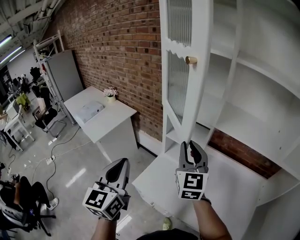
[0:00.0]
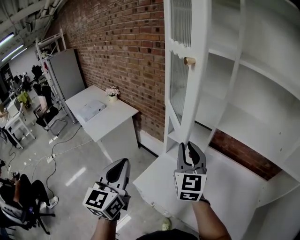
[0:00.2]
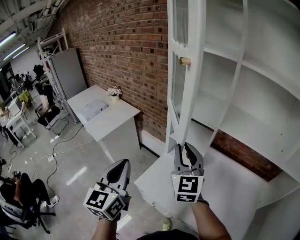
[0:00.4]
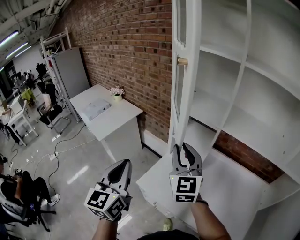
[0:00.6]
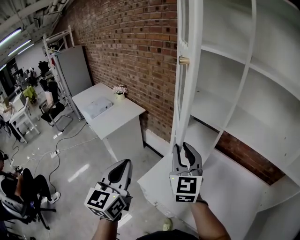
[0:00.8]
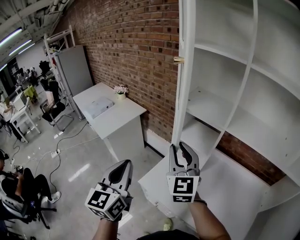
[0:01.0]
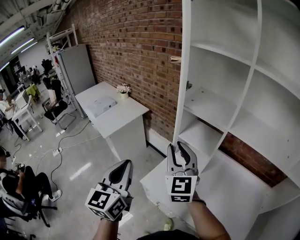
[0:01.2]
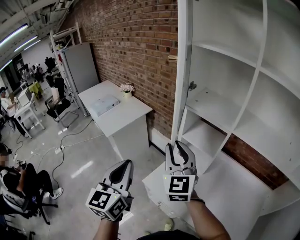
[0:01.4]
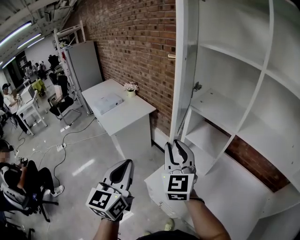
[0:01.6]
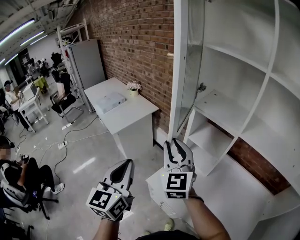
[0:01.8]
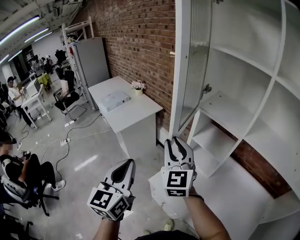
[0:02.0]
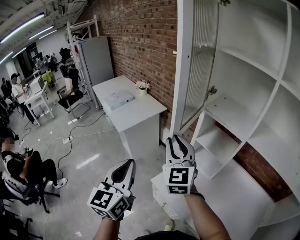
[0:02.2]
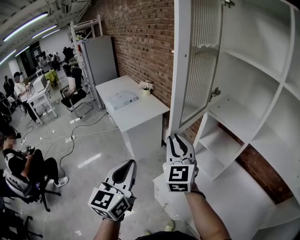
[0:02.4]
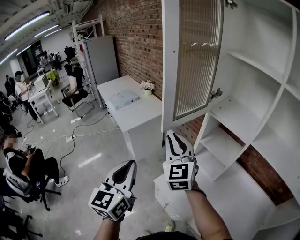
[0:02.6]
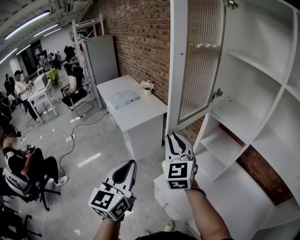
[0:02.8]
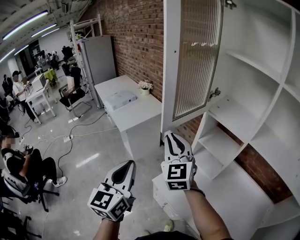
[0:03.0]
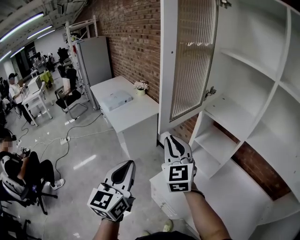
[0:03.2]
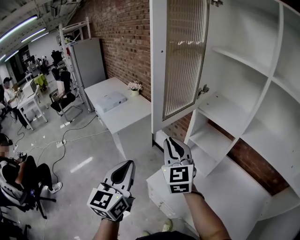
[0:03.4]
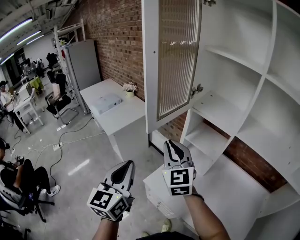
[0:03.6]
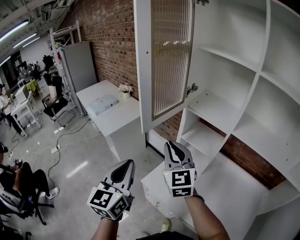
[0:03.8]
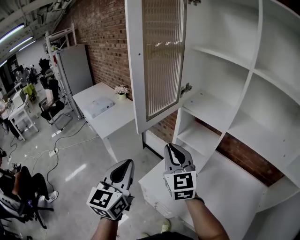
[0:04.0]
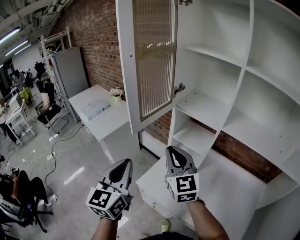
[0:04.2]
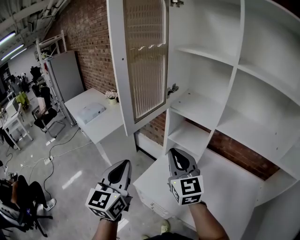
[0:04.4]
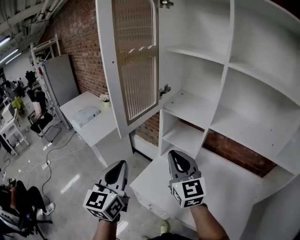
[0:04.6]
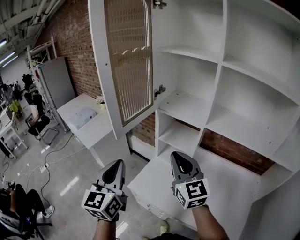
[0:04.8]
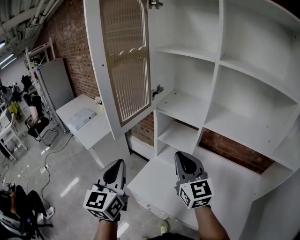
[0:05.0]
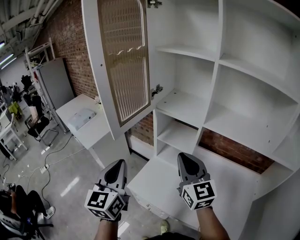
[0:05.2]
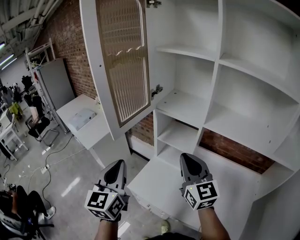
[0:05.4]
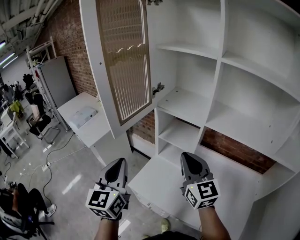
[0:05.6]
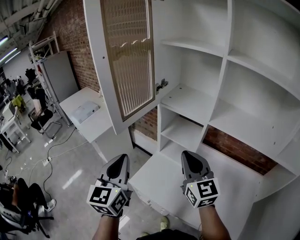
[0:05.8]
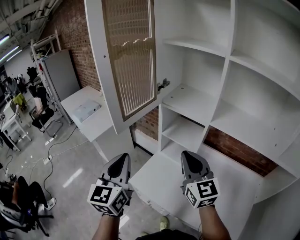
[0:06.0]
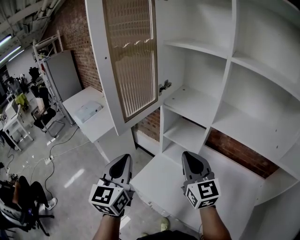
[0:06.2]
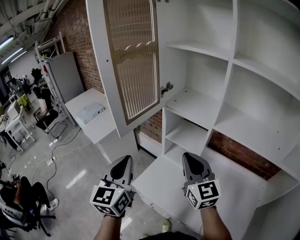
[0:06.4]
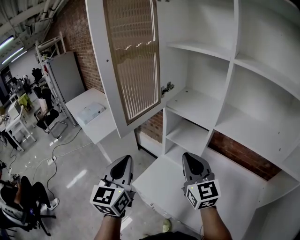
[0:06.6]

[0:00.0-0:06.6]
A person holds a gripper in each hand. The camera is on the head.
0:00.0 to 0:01.6: The left gripper shifts roughly 5 cm to the left, while the right gripper goes some 15 cm to the left.
0:01.6 to 0:03.2: The right gripper goes about 5 cm to the left.
0:03.2 to 0:05.0: The right gripper travels to the right and backward by approximately 20 cm, while the left gripper shifts approximately 10 cm to the right.
0:05.0 to 0:06.6: The grippers move only a little.

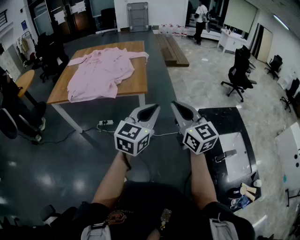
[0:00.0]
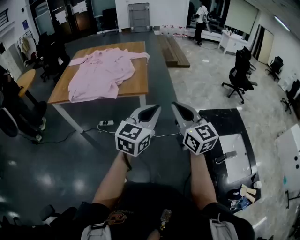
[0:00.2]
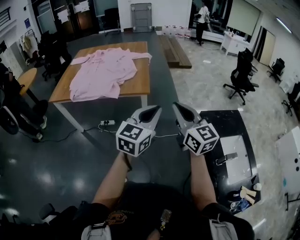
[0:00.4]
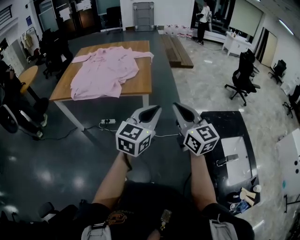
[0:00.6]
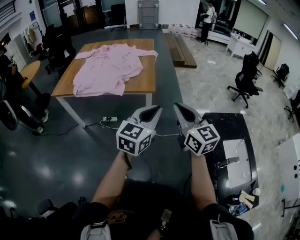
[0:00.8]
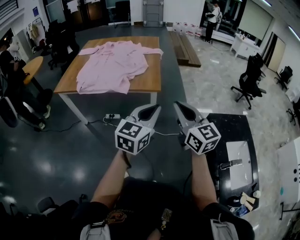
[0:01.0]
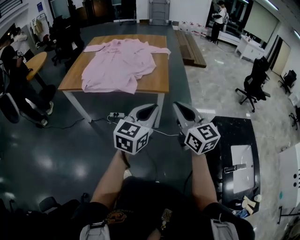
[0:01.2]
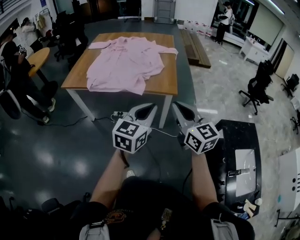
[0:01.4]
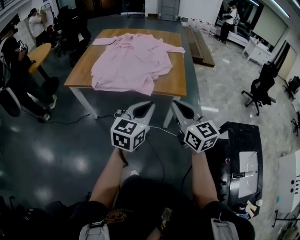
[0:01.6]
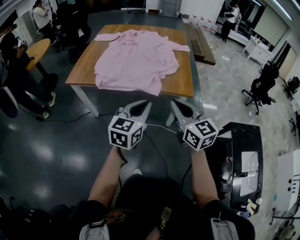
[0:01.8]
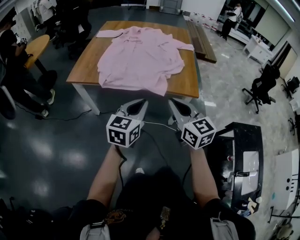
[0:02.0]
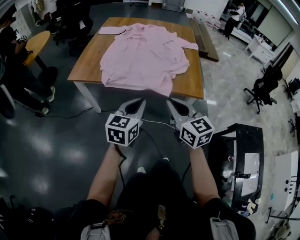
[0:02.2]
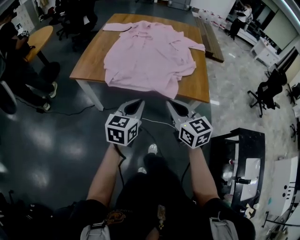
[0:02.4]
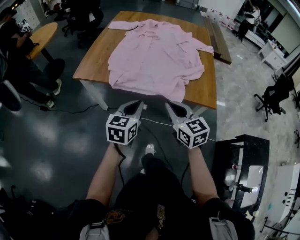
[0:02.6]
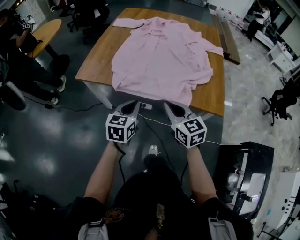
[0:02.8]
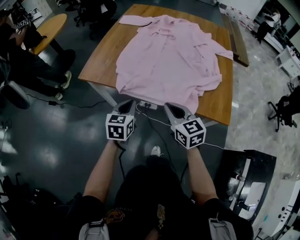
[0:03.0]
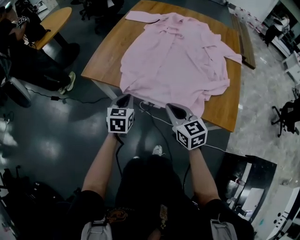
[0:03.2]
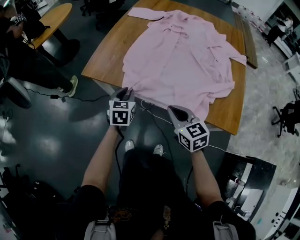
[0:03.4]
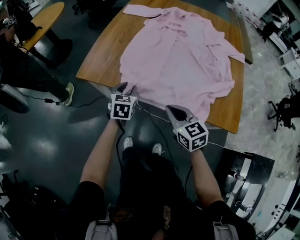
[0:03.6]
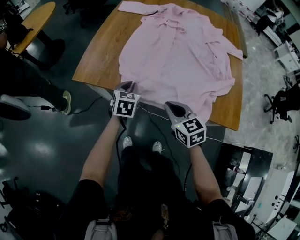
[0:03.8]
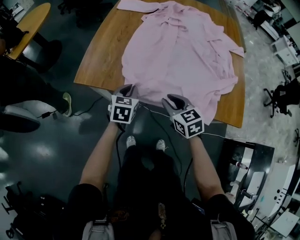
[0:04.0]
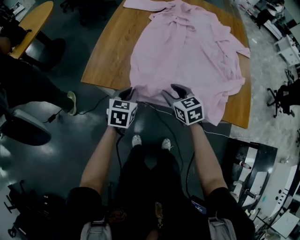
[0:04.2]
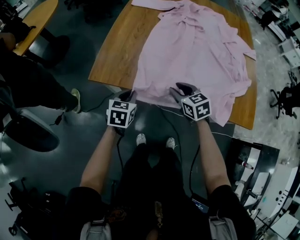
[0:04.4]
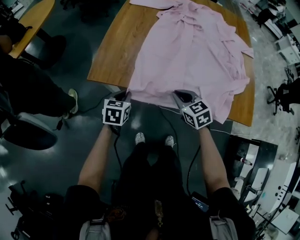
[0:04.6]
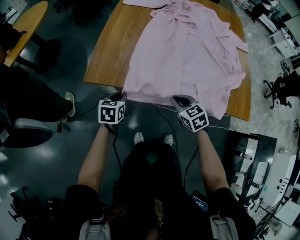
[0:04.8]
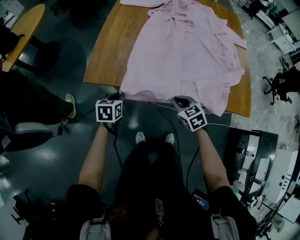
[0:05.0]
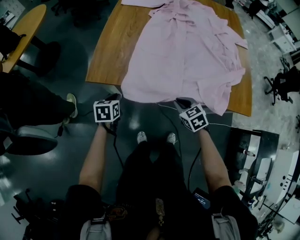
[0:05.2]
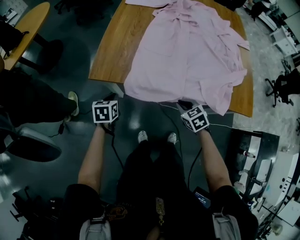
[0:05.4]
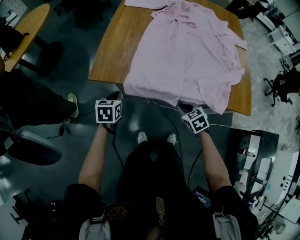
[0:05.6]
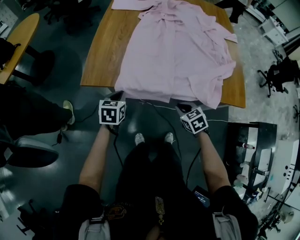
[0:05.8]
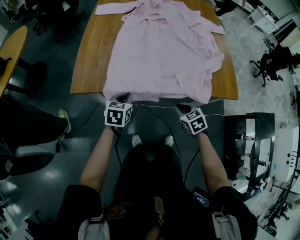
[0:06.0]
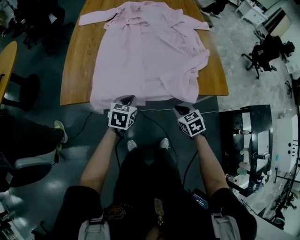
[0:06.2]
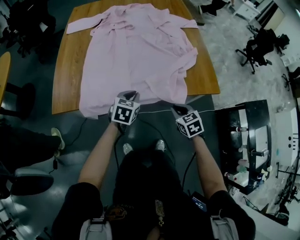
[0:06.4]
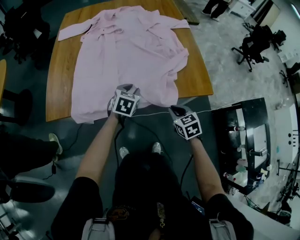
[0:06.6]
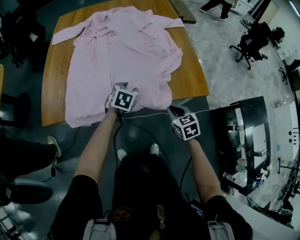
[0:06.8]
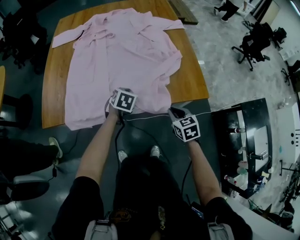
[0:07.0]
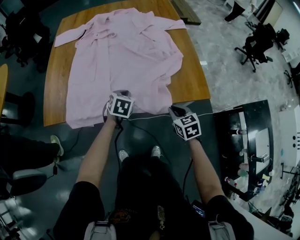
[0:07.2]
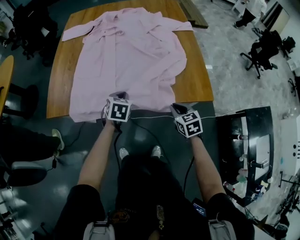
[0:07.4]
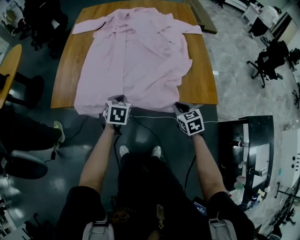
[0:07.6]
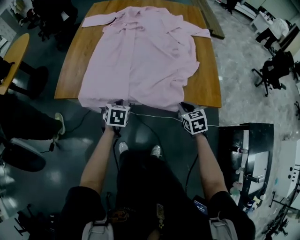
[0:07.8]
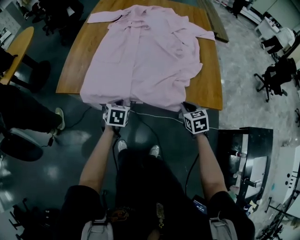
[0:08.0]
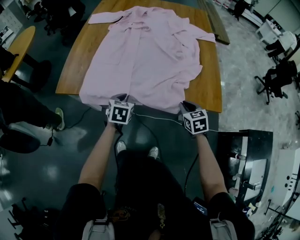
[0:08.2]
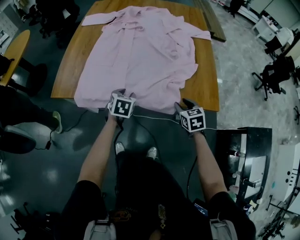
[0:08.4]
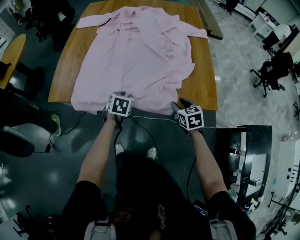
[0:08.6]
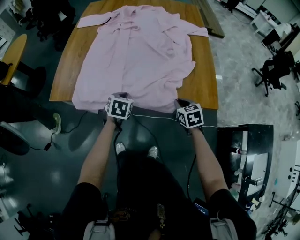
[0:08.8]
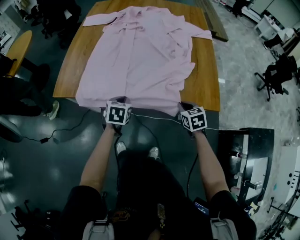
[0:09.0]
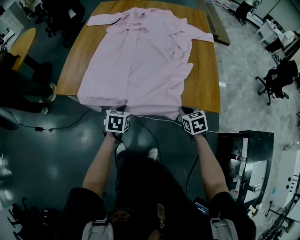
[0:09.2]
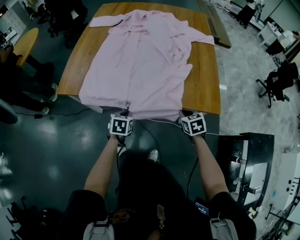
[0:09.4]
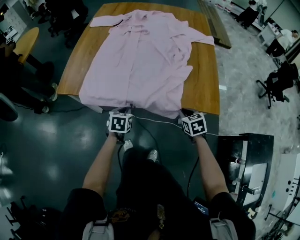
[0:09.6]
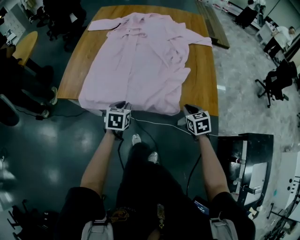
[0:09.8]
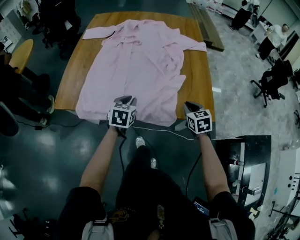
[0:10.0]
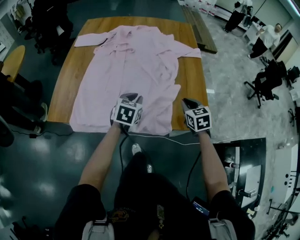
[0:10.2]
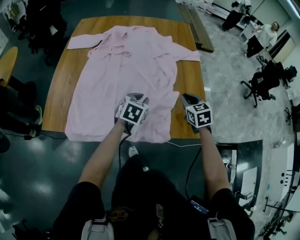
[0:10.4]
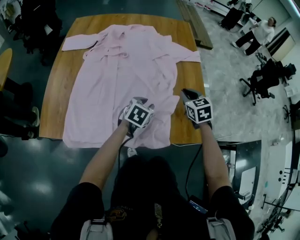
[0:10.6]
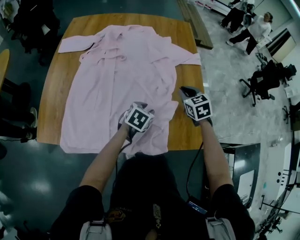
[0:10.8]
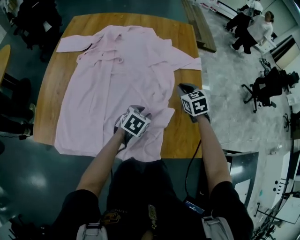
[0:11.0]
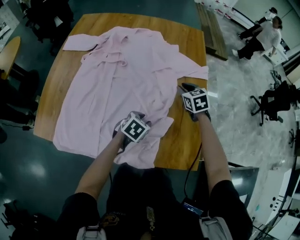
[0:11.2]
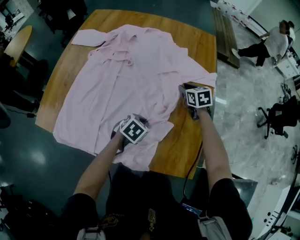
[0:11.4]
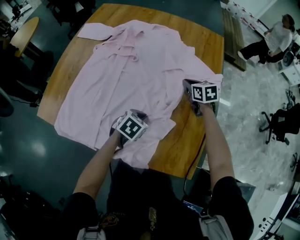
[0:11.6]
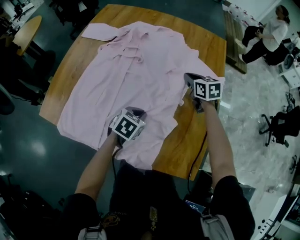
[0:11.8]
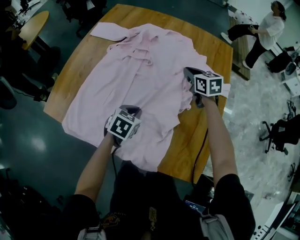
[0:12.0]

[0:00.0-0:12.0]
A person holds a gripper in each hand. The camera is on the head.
0:00.0 to 0:01.6: Both grippers move to the left and forward, roughly 25 cm.
0:01.6 to 0:03.0: The right gripper heads forward, to the left and downward, covering approximately 35 cm, and rotates about 20 degrees. Meanwhile the left gripper moves to the left, forward and downward, some 40 cm, and rotates approximately 30 degrees.
0:03.0 to 0:04.4: The left gripper moves forward, to the left and downward, approximately 25 cm, and opens, then closes once more, while the right gripper shifts about 25 cm forward, downward and to the left, and opens up.
0:04.4 to 0:06.0: The left gripper shifts approximately 5 cm to the right; the right gripper is displaced backward and to the right by roughly 20 cm, and closes its fingers.
0:06.0 to 0:07.6: The grippers both shift to the right by about 15 cm. The left gripper opens, then closes again.
0:07.6 to 0:09.0: The right gripper opens, then closes once more. Meanwhile the left gripper opens, then closes again.
0:09.0 to 0:10.4: The left gripper heads forward, to the right and upward, covering approximately 25 cm, and changes its angle by approximately 20 degrees. Meanwhile the right gripper goes approximately 20 cm forward and upward.
0:10.4 to 0:12.0: The right gripper goes downward and returns, roughly 10 cm each way, and turns by some 30 degrees. The left gripper goes downward and returns, roughly 10 cm each way.

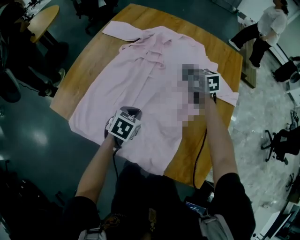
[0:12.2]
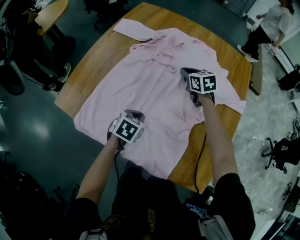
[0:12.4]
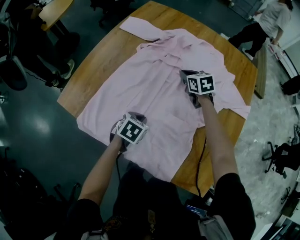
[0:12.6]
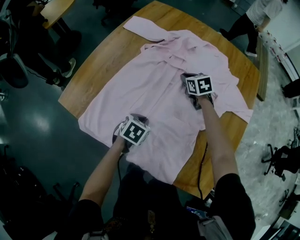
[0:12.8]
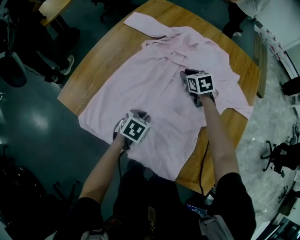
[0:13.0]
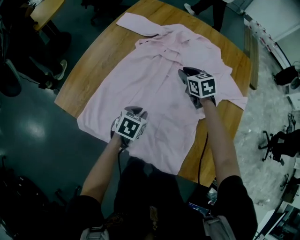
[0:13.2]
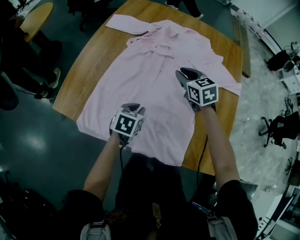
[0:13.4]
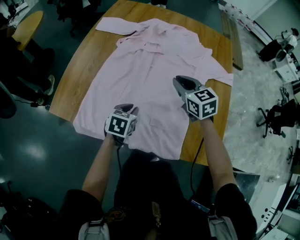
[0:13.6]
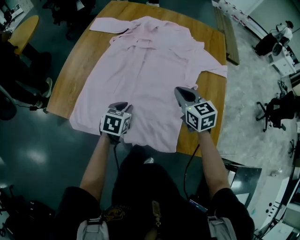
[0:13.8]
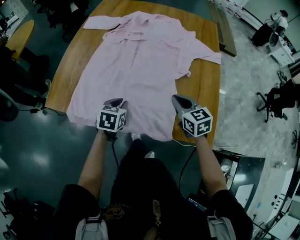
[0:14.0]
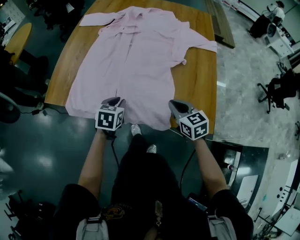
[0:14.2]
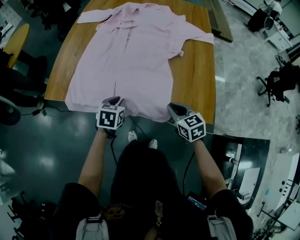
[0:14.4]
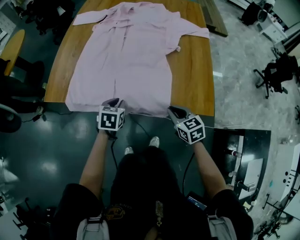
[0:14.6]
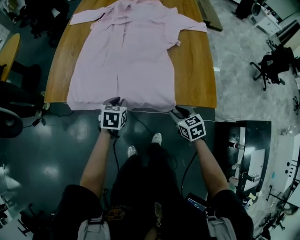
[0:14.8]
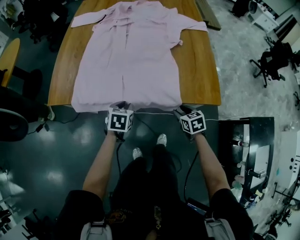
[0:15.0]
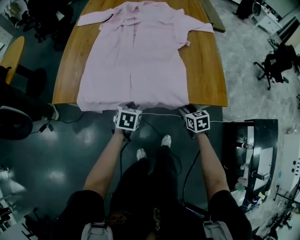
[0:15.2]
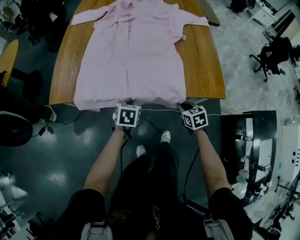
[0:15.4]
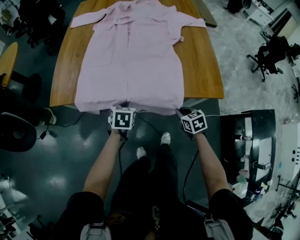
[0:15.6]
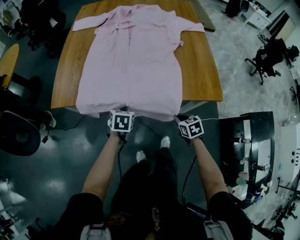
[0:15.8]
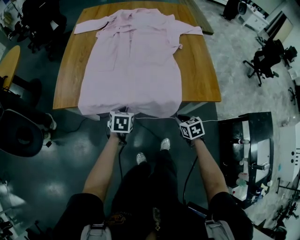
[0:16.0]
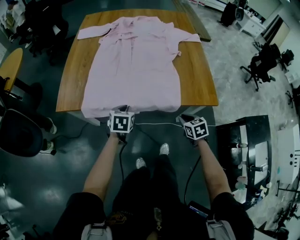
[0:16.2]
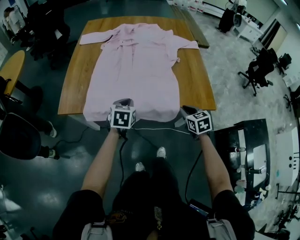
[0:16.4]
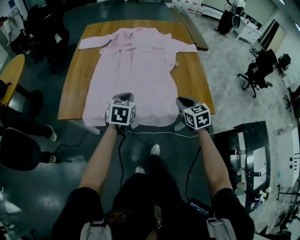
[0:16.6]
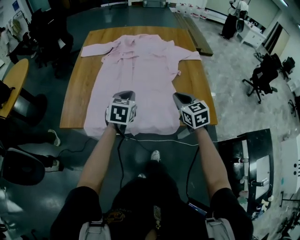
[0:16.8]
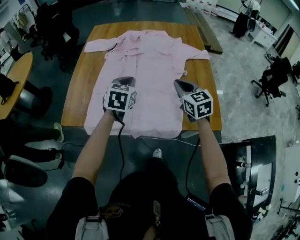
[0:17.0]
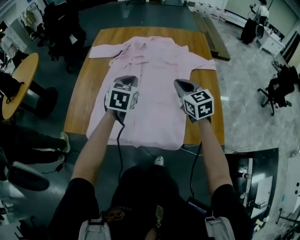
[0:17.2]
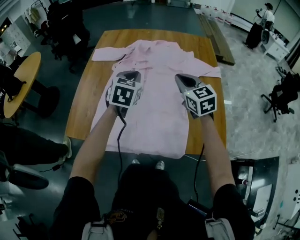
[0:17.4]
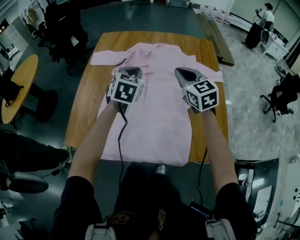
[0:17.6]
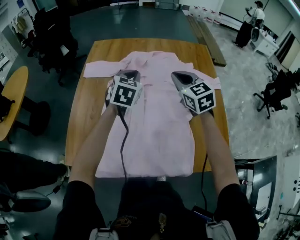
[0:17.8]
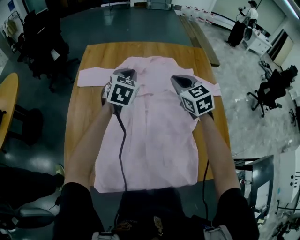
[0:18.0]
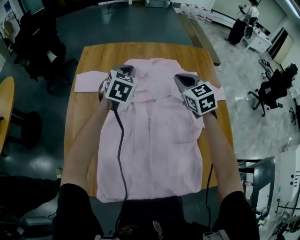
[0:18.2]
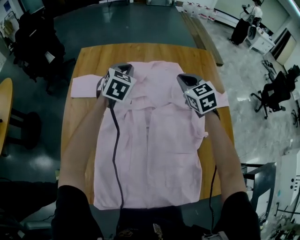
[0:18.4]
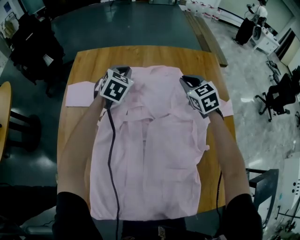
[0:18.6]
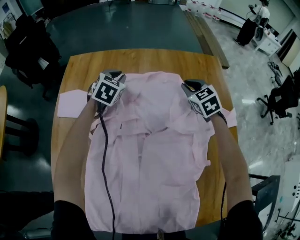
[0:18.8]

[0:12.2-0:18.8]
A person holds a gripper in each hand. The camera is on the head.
0:12.2 to 0:13.8: The left gripper heads to the left and backward, covering roughly 10 cm, while the right gripper shifts roughly 25 cm backward.
0:13.8 to 0:15.4: The right gripper goes about 35 cm backward and downward, rotates some 30 degrees, and opens and closes again; the left gripper moves backward and downward, about 15 cm.
0:15.4 to 0:17.2: The two grippers go some 35 cm upward and forward. The left gripper turns by about 20 degrees. Meanwhile the right gripper swivels approximately 30 degrees.
0:17.2 to 0:18.8: The pair of grippers is taken forward, about 50 cm. The right gripper changes its angle by some 20 degrees.
